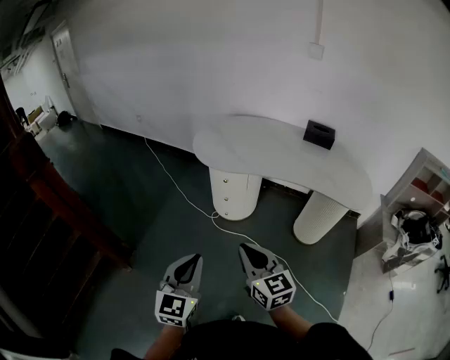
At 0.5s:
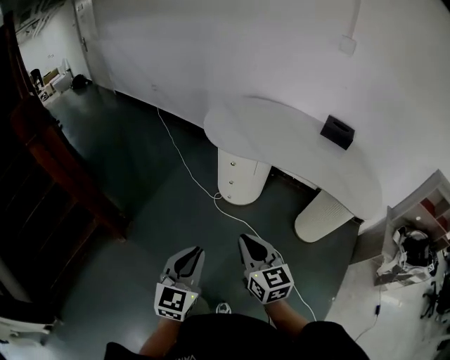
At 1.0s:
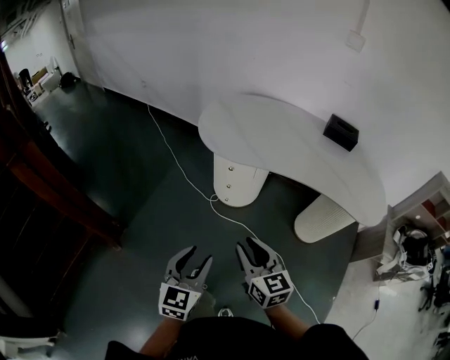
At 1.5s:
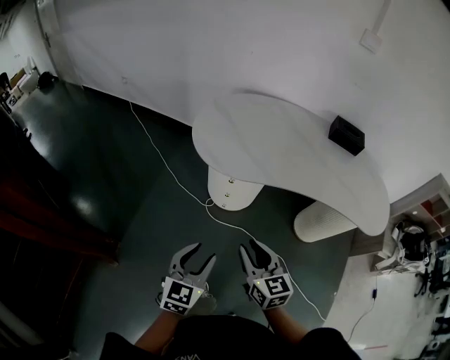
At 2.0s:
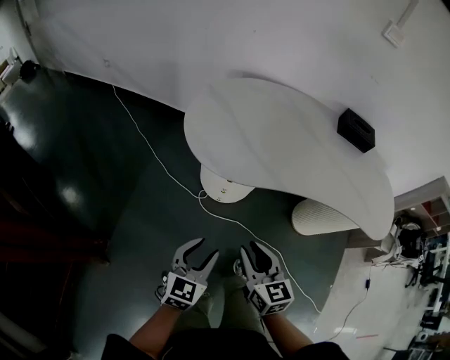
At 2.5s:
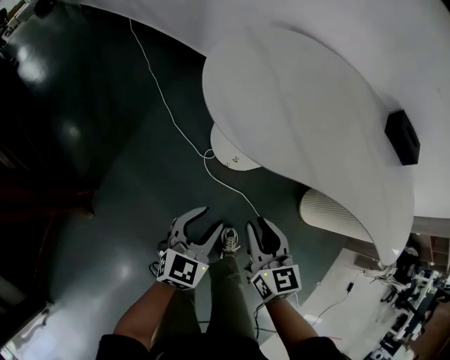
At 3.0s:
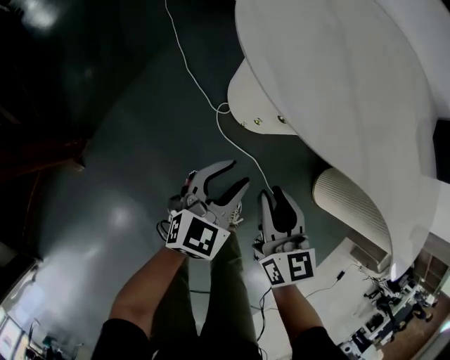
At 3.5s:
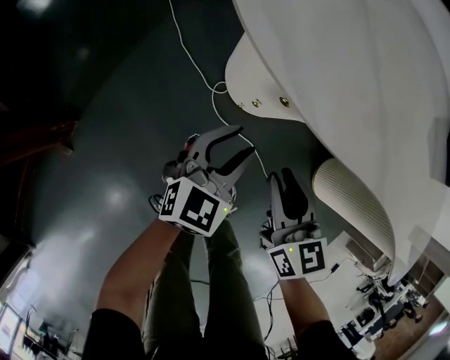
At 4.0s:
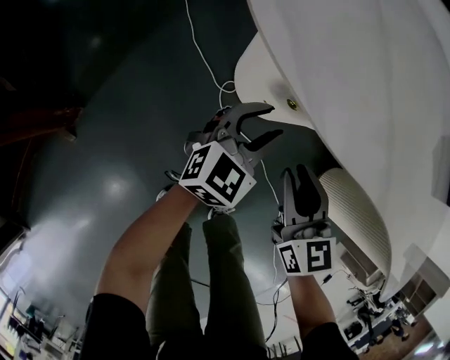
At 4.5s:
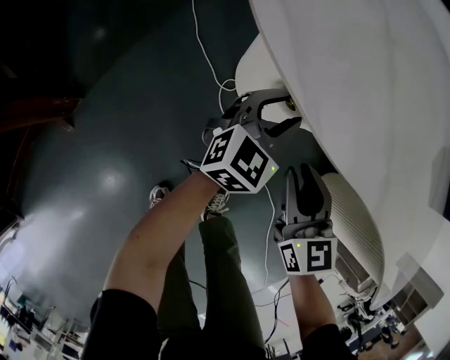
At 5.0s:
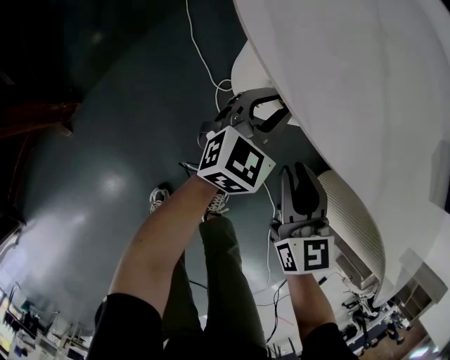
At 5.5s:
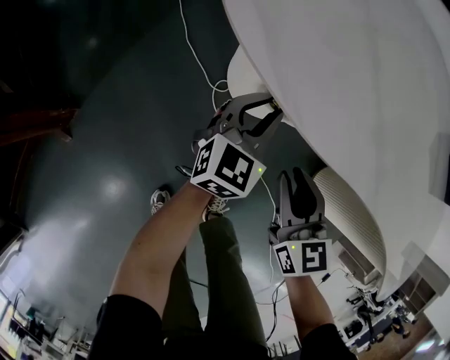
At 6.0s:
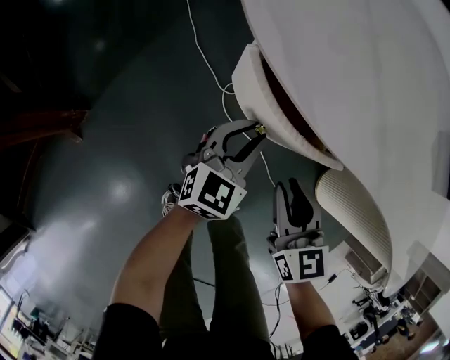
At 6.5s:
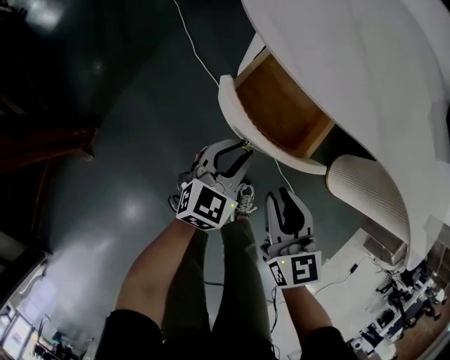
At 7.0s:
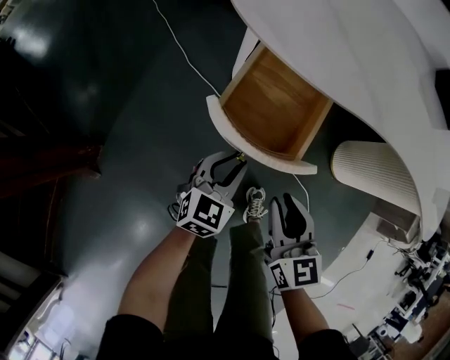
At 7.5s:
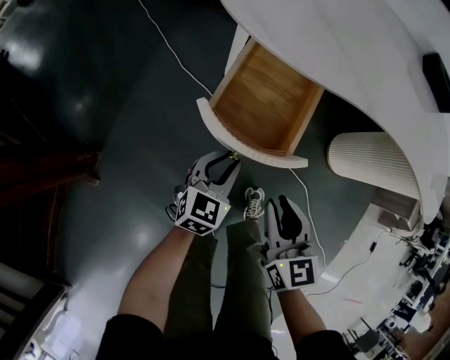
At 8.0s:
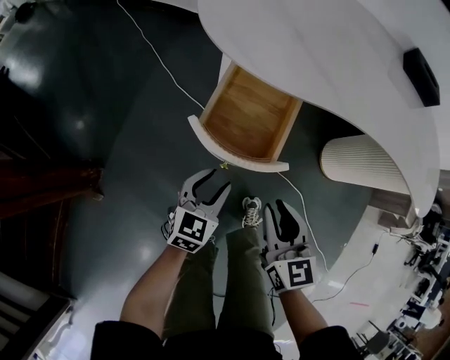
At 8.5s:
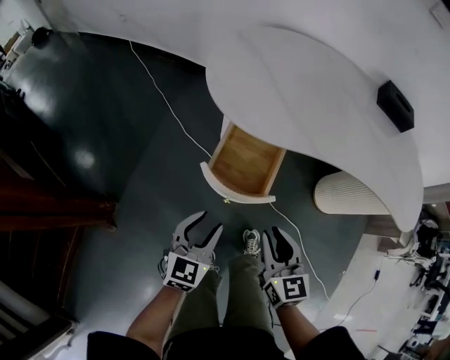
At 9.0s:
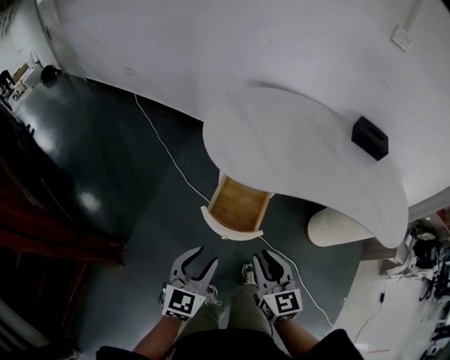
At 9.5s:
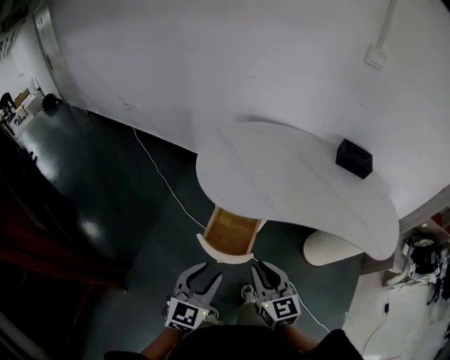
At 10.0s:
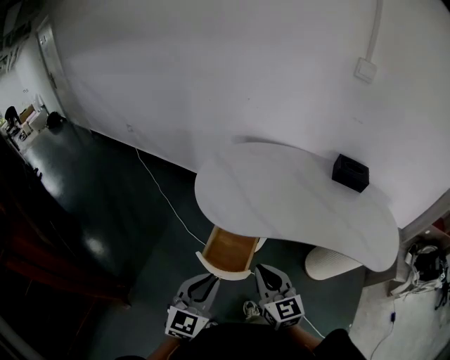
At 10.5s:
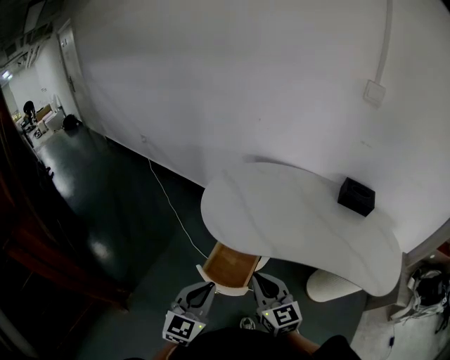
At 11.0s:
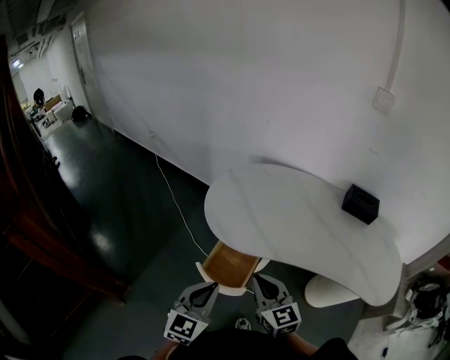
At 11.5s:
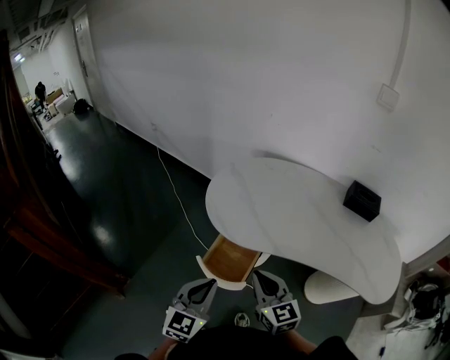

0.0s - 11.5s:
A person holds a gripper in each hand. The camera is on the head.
0.0s - 2.0s: The two grippers go roughly 35 cm forward and downward. The left gripper turns by some 20 degrees, and opens. Meanwhile the right gripper turns by roughly 20 degrees, and opens up.
2.0s - 4.0s: The grippers both shift downward and forward by about 30 cm. The right gripper rotates approximately 20 degrees.
4.0s - 6.0s: The grippers move only a little.
6.0s - 7.5s: Both grippers travel together backward, roughly 15 cm.
7.5s - 9.5s: Both grippers travel together upward, about 30 cm.
9.5s - 11.5s: The right gripper is displaced forward by about 5 cm. Meanwhile the left gripper ends up some 5 cm from where it was, and closes.

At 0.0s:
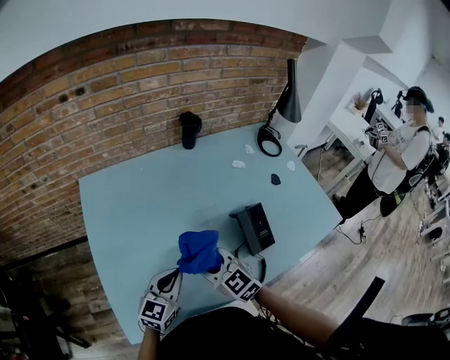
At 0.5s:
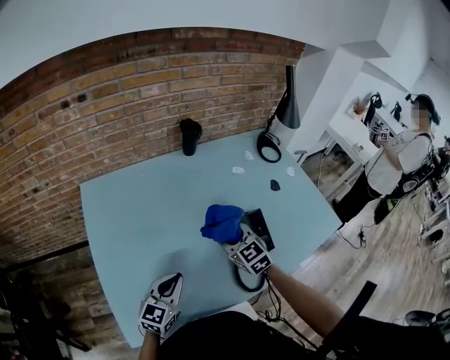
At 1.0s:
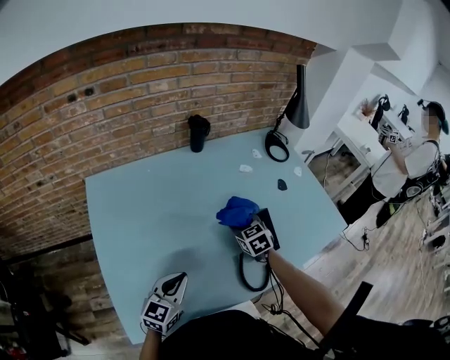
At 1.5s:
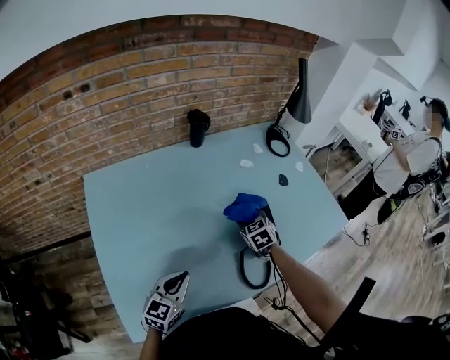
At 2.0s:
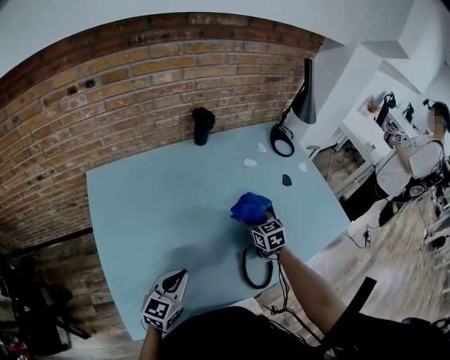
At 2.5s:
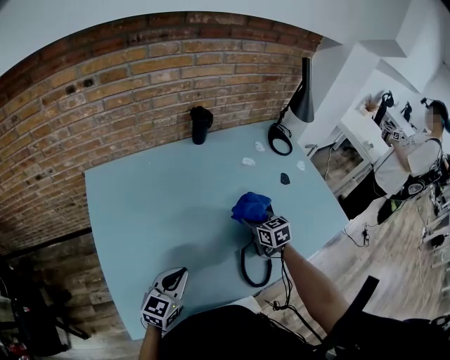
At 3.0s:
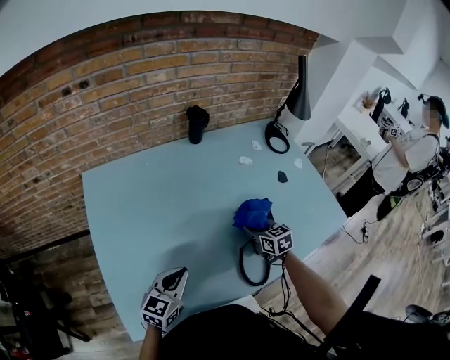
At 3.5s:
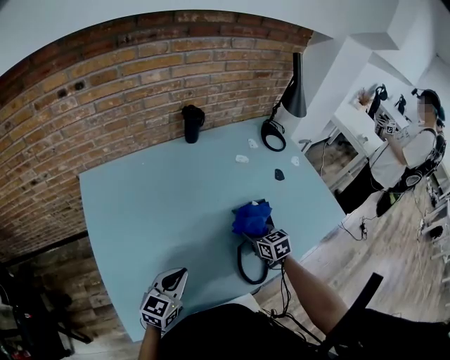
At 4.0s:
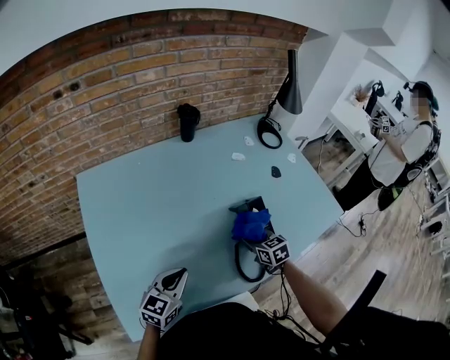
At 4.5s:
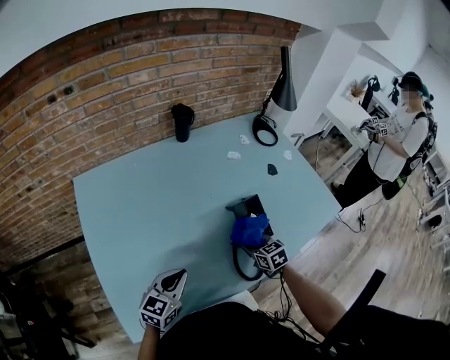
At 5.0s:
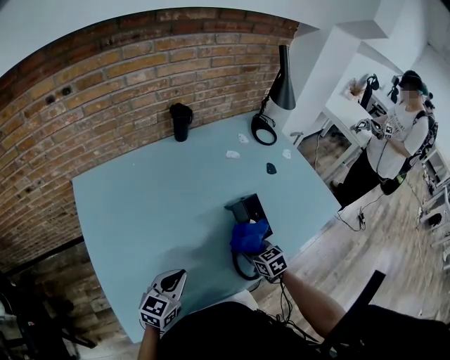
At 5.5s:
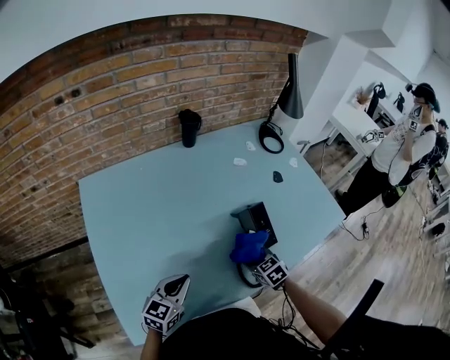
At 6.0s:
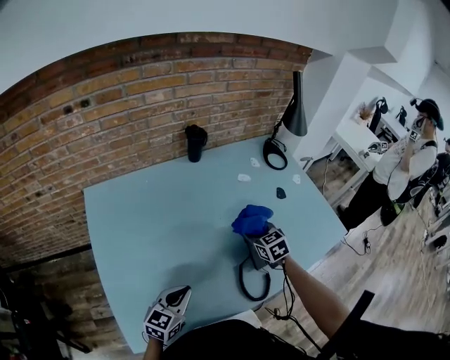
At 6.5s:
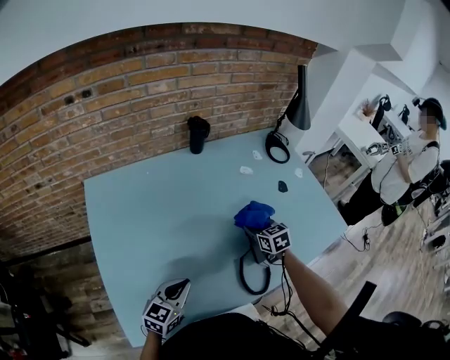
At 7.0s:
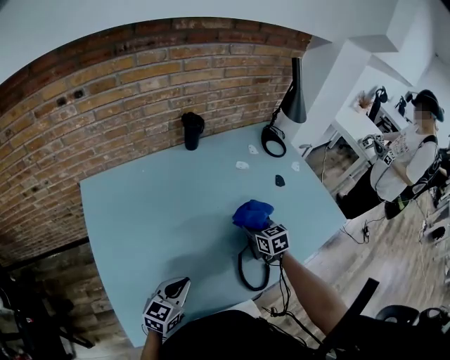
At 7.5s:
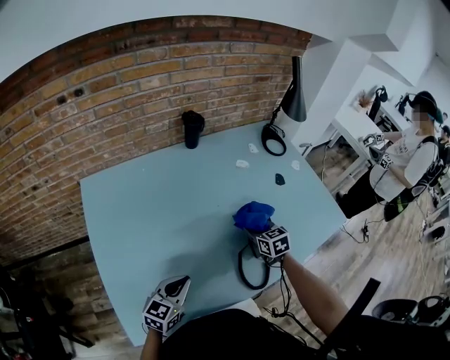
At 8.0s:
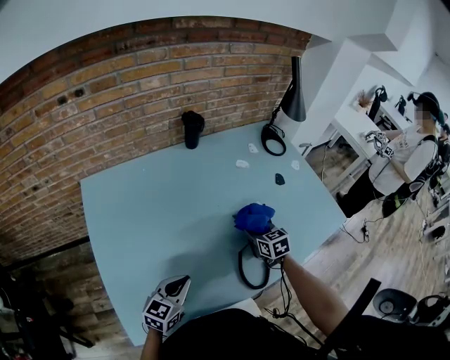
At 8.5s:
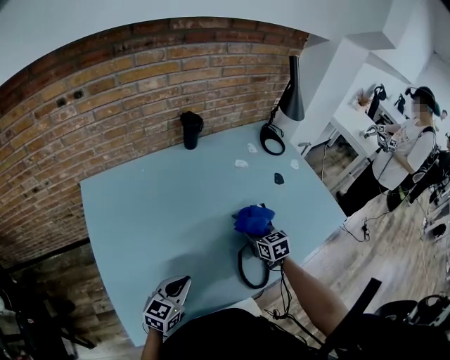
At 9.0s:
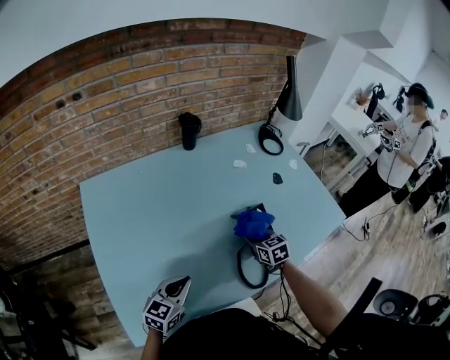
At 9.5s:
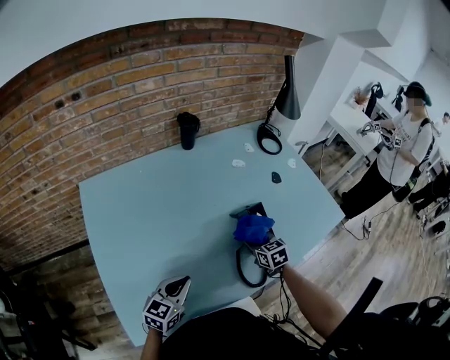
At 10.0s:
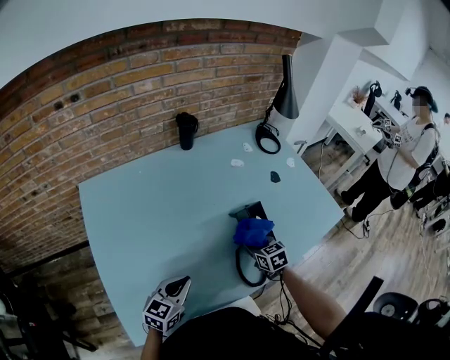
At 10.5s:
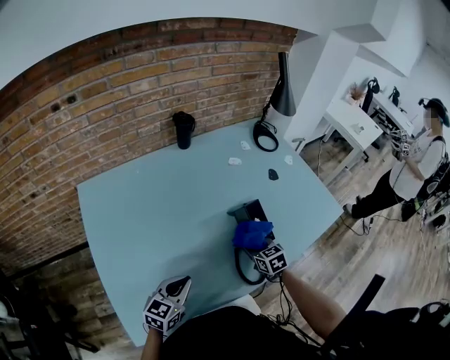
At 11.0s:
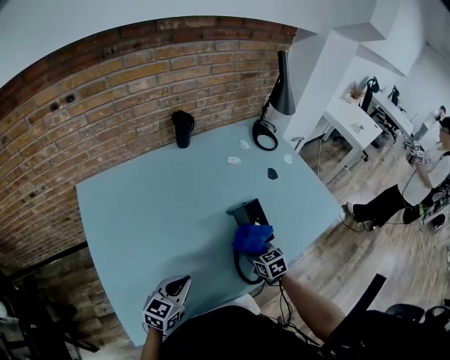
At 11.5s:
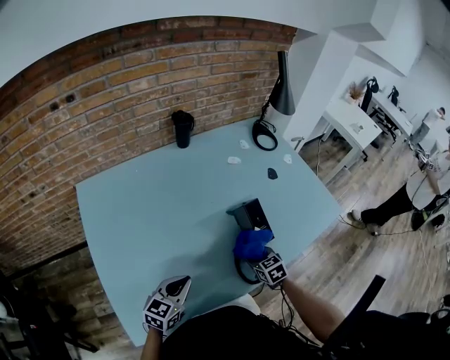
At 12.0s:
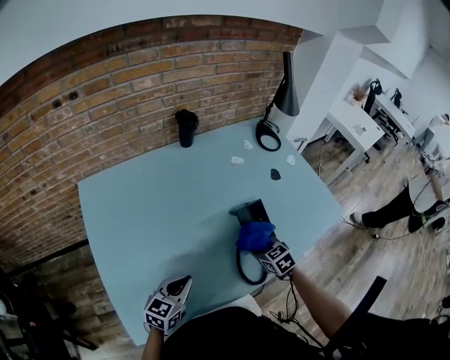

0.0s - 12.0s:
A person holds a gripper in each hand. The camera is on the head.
0.0s - 2.0s: The right gripper moves forward, to the right and downward, about 25 cm, and turns by about 30 degrees.
2.0s - 4.0s: The right gripper goes roughly 10 cm backward.
4.0s - 6.0s: The right gripper goes approximately 10 cm forward and upward.
6.0s - 8.0s: The right gripper ends up roughly 5 cm from where it was.
8.0s - 10.0s: The right gripper travels backward by approximately 5 cm.

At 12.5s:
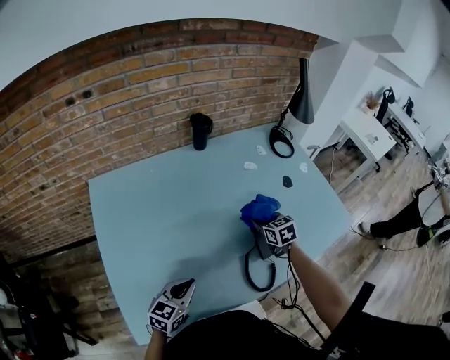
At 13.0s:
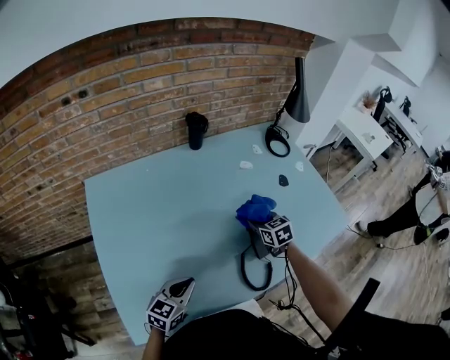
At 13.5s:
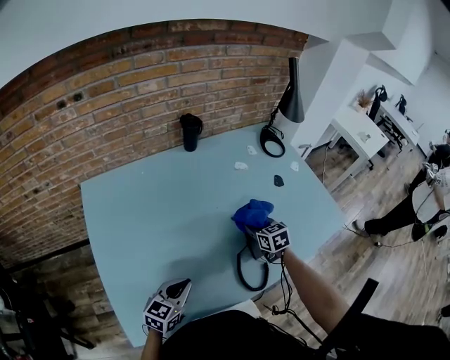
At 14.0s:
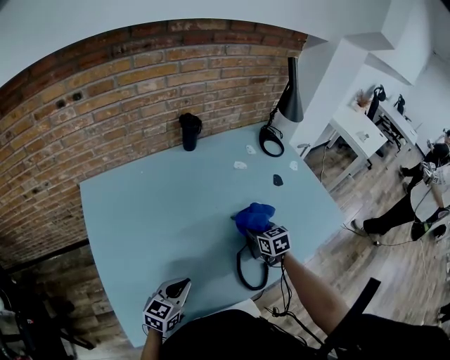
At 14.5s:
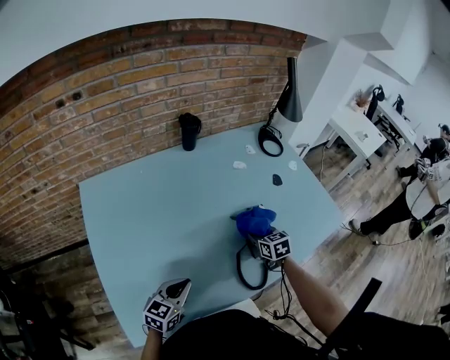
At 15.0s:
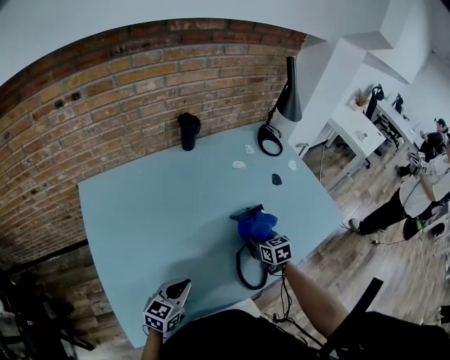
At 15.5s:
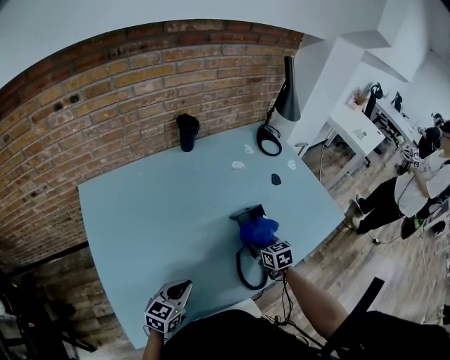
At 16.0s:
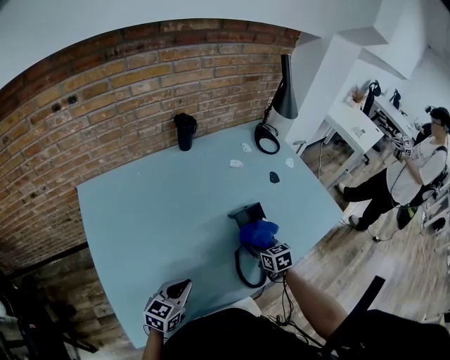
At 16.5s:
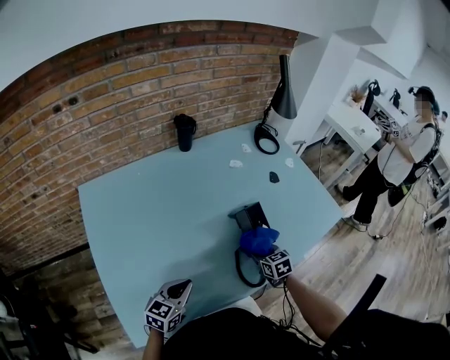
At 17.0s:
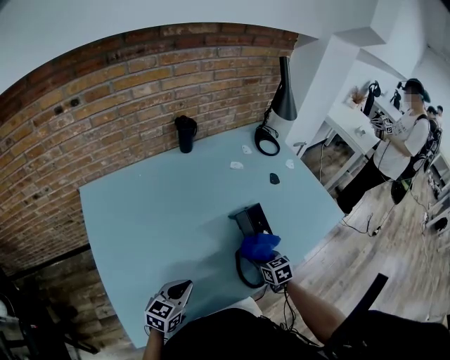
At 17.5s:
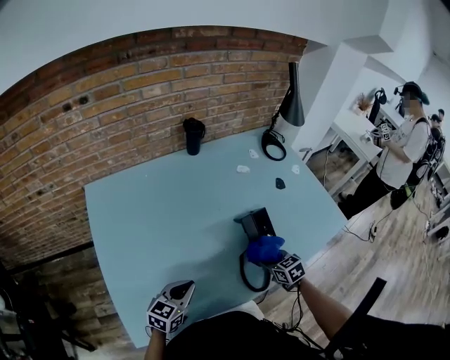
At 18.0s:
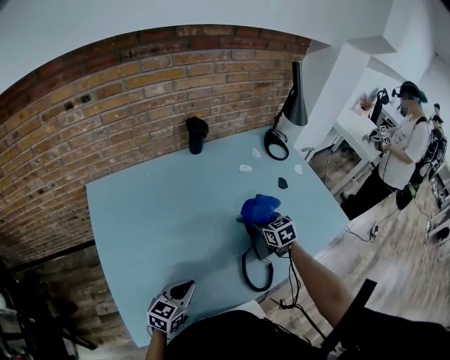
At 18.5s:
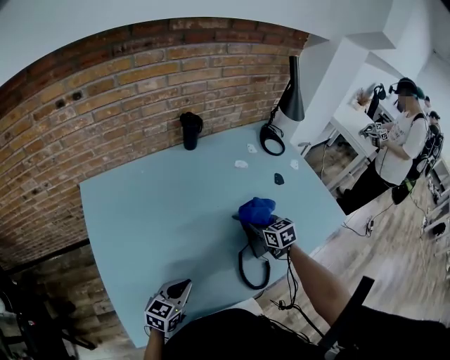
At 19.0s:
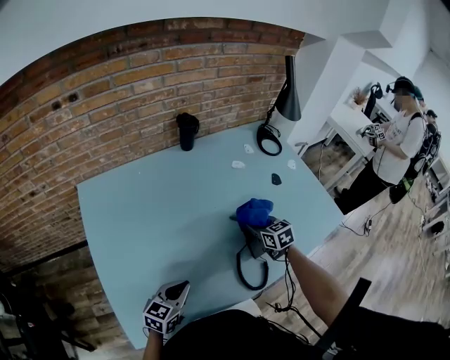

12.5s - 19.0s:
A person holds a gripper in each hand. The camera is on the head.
12.5s - 14.5s: The right gripper shifts by roughly 5 cm.
14.5s - 17.0s: The right gripper goes roughly 10 cm backward and downward.
17.0s - 19.0s: The right gripper is displaced forward and upward by some 15 cm.
